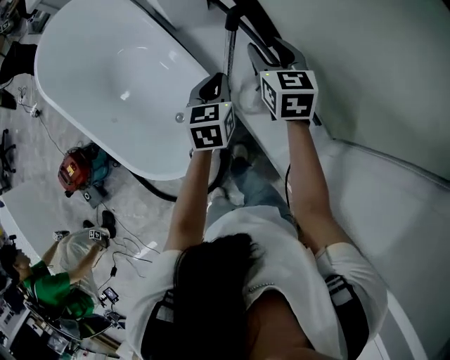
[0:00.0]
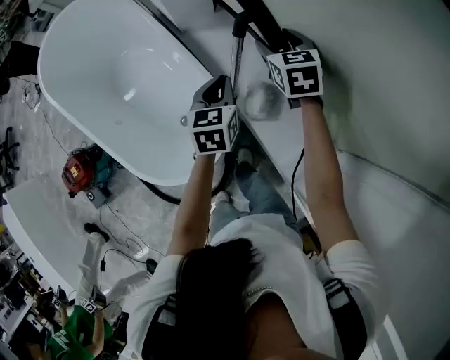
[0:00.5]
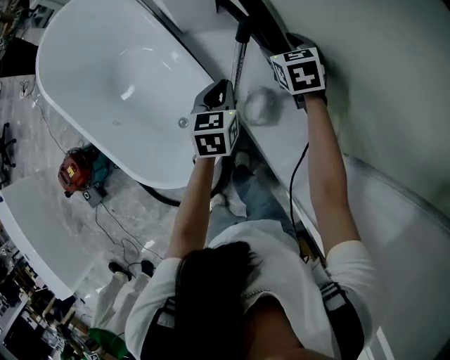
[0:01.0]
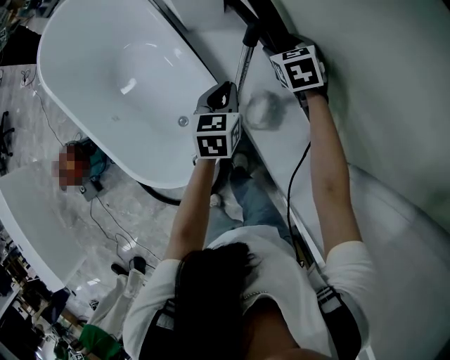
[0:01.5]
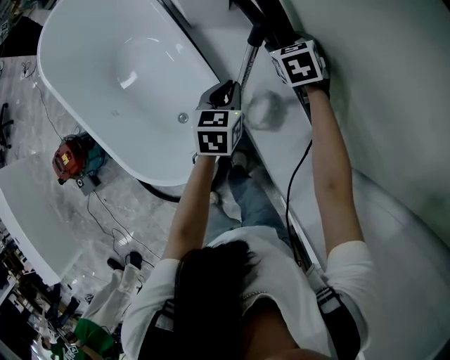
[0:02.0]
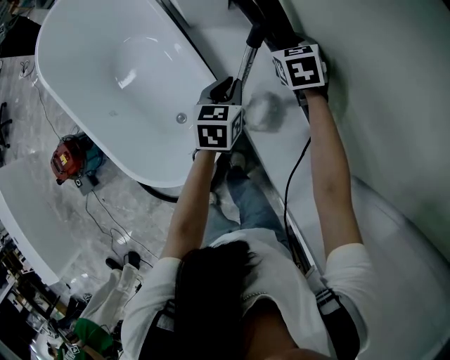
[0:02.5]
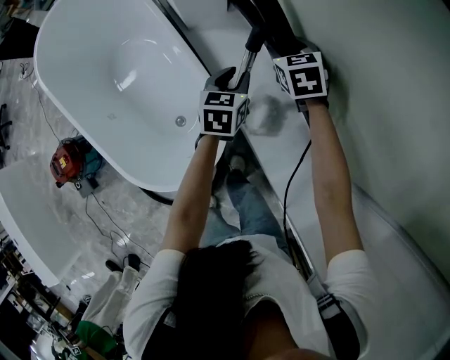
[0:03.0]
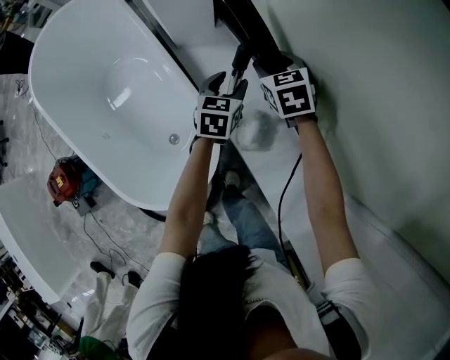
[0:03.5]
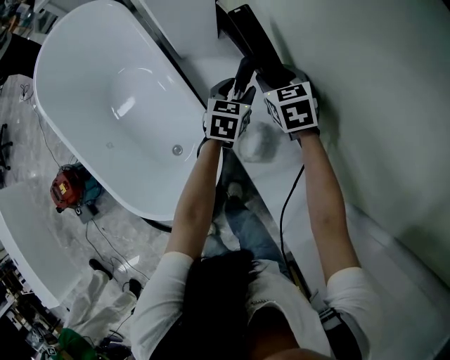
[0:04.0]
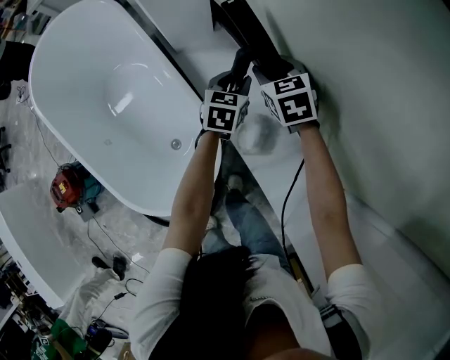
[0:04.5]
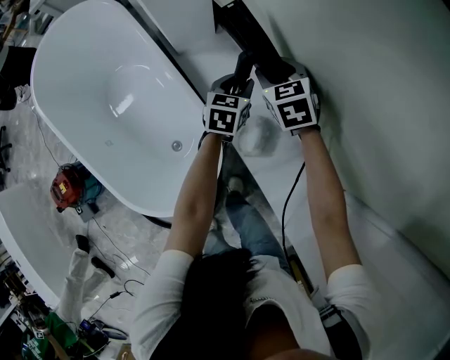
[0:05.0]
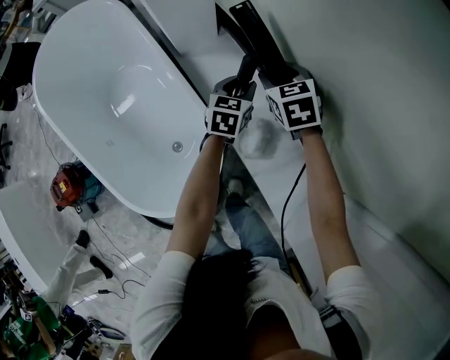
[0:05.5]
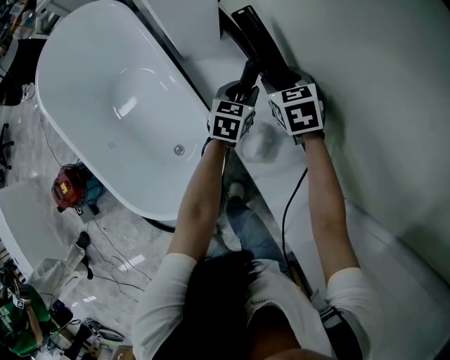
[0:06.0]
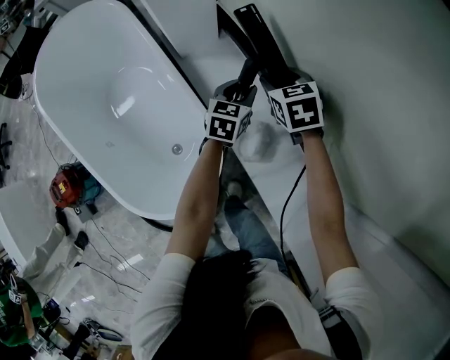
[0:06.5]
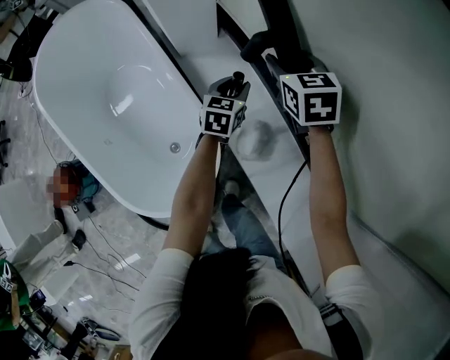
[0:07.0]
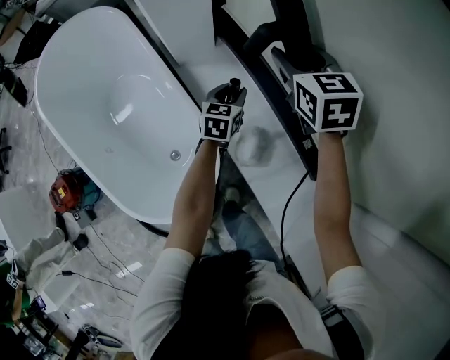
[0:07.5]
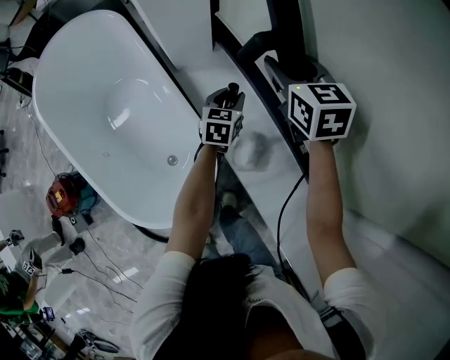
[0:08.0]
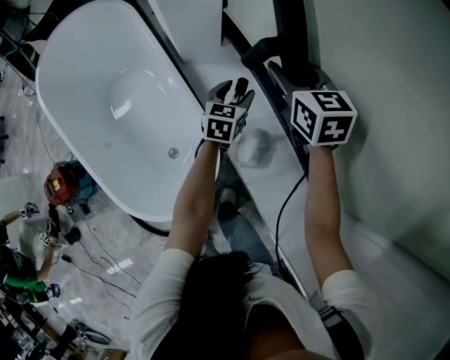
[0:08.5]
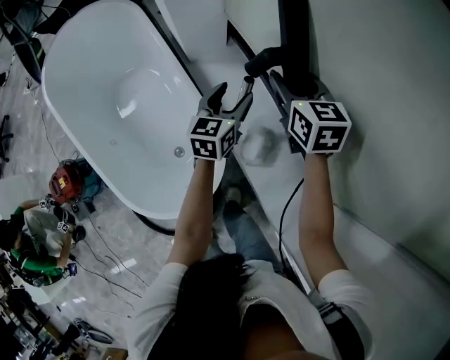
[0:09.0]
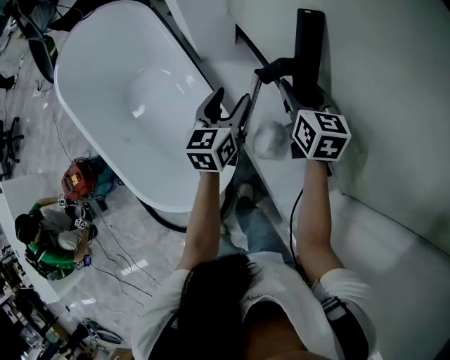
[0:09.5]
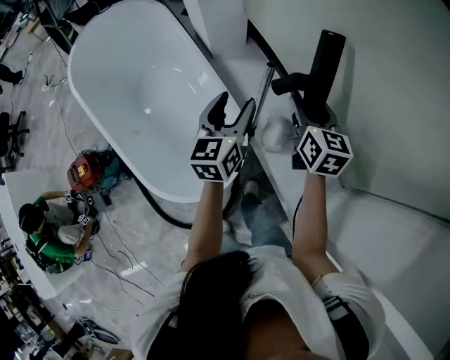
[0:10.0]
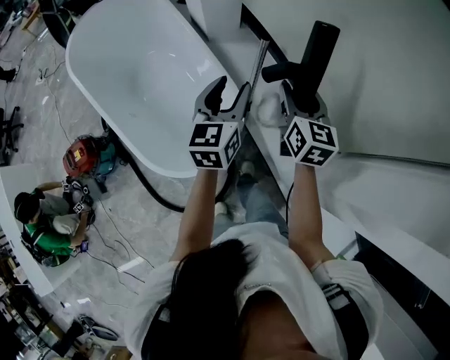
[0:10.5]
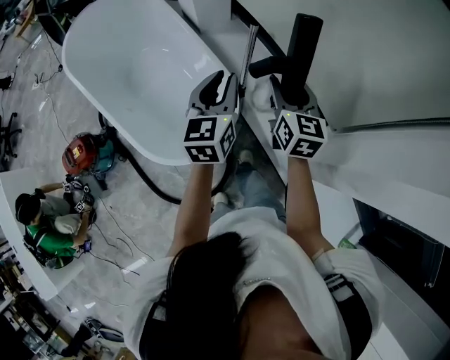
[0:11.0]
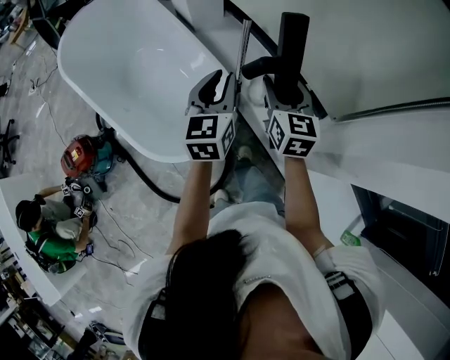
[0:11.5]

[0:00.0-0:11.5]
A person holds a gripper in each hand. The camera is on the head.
0:00.0 to 0:02.0: The right gripper moves downward and forward, about 15 cm, and turns by roughly 30 degrees; the left gripper moves some 5 cm.
0:02.0 to 0:04.0: The left gripper goes approximately 15 cm forward, to the right and downward, and opens.
0:04.0 to 0:06.0: Both grippers stay put.
0:06.0 to 0:07.5: The right gripper shifts some 15 cm upward.
0:07.5 to 0:09.5: The left gripper moves upward, backward and to the left, roughly 20 cm, rotates some 20 degrees, and opens its fingers; the right gripper shifts about 10 cm backward.
0:09.5 to 0:11.5: The right gripper goes roughly 25 cm backward, while the left gripper goes roughly 25 cm backward and upward, and closes its fingers.

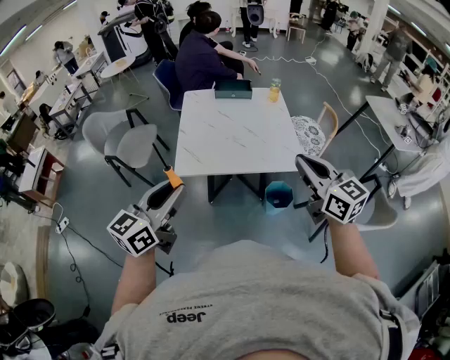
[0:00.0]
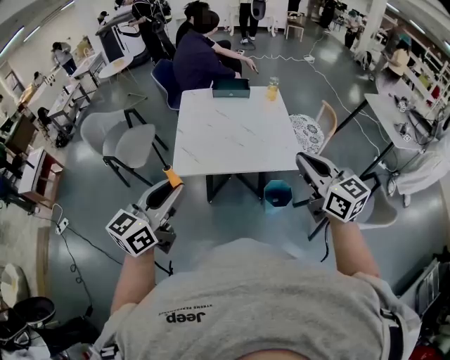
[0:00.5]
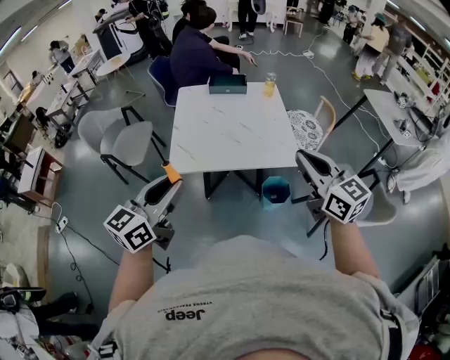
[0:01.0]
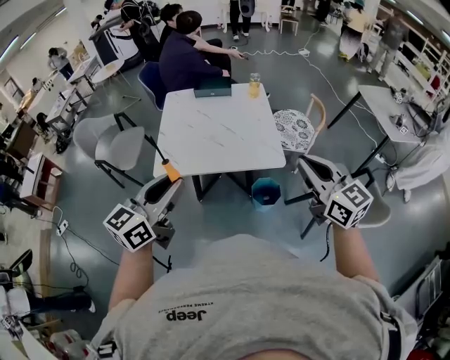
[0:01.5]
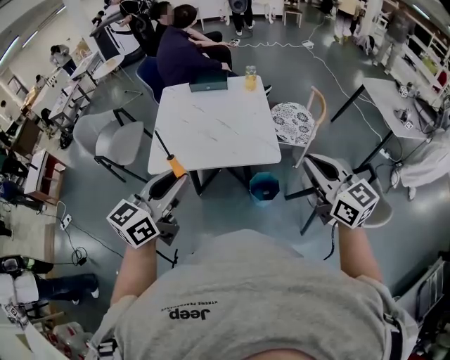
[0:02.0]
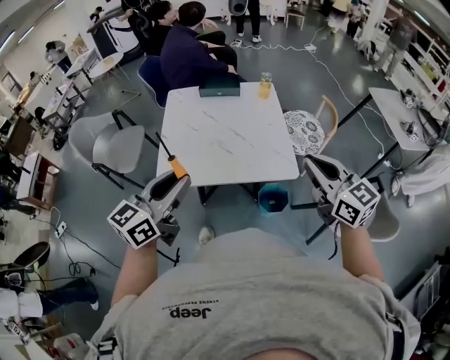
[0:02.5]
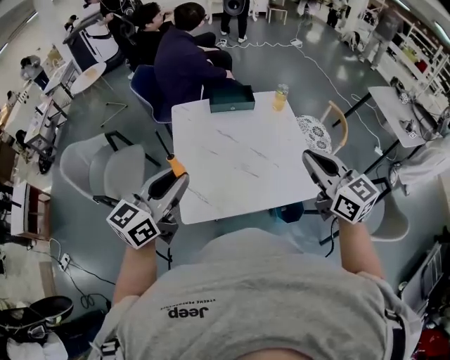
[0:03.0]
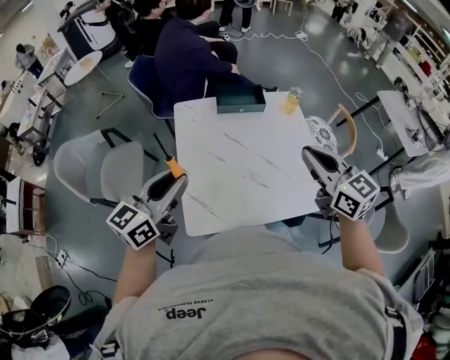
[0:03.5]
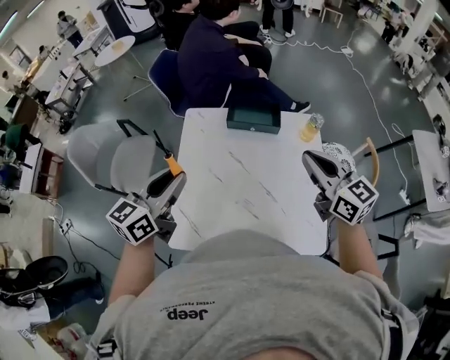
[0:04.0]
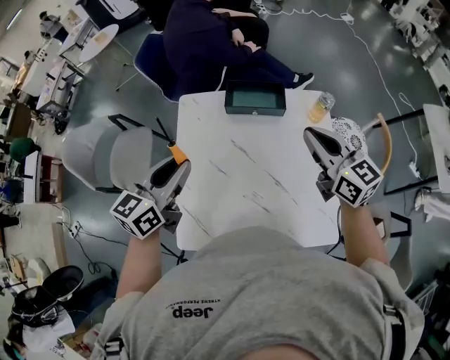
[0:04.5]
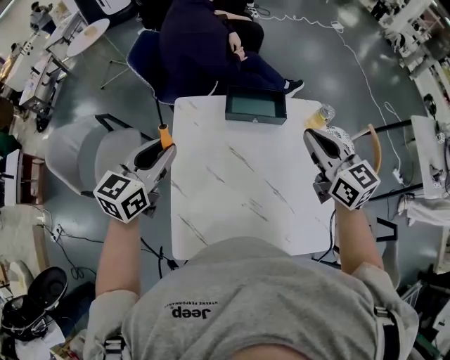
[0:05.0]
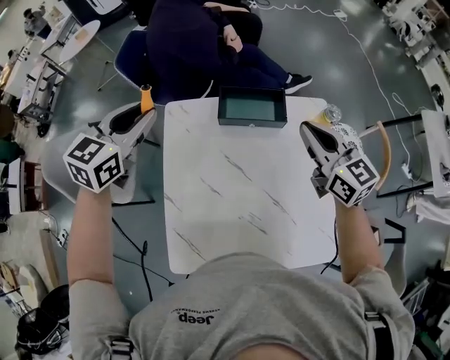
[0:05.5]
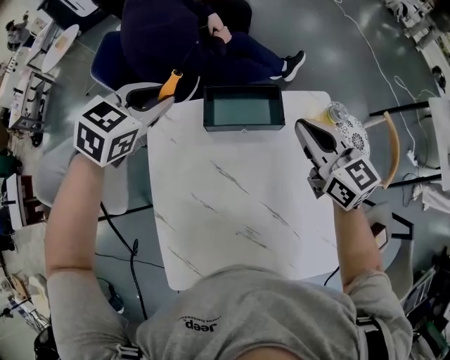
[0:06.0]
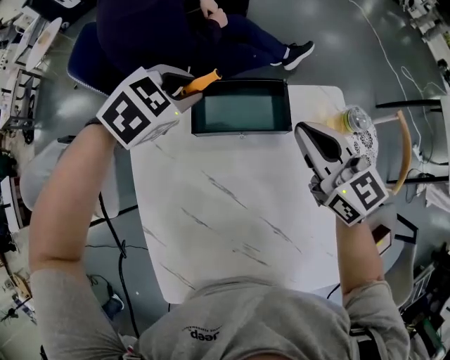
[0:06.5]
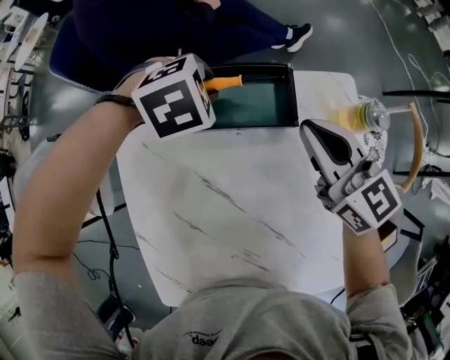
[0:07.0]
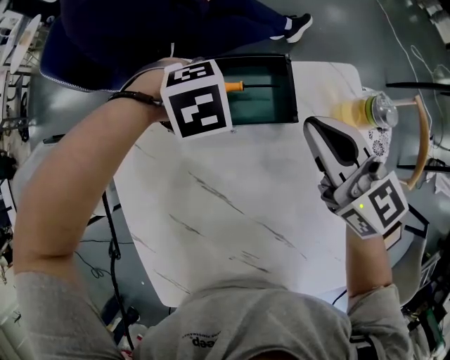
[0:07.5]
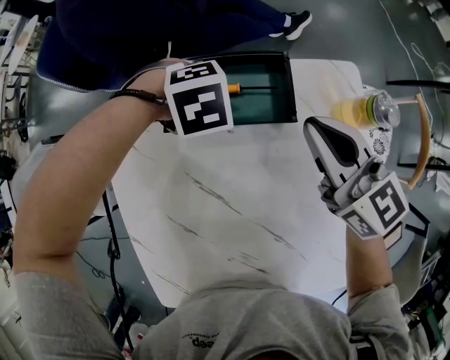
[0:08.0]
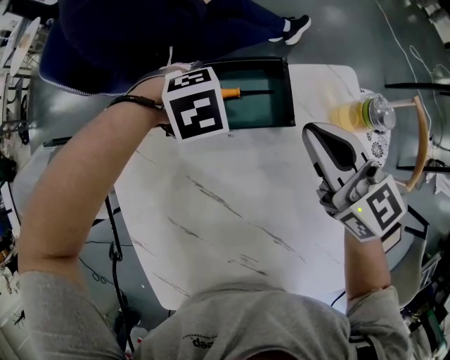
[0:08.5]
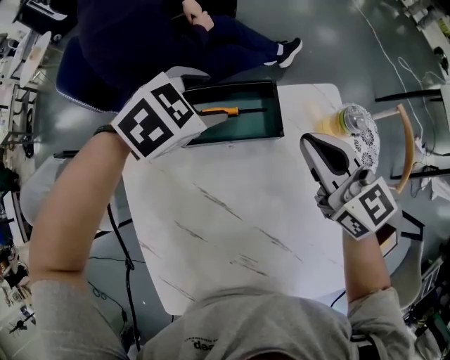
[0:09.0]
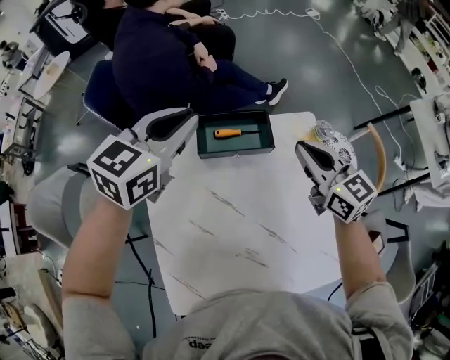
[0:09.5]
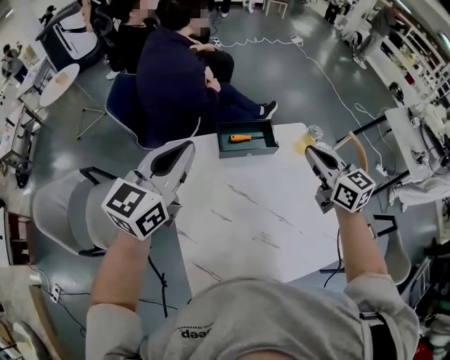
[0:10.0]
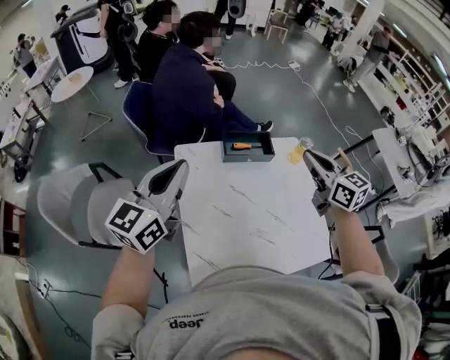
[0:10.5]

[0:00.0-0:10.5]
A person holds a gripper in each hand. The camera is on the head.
0:00.0 to 0:02.0: The grippers both shift to the right by approximately 20 cm.
0:02.0 to 0:04.0: The pair of grippers is taken forward and to the left, roughly 50 cm.
0:04.0 to 0:06.5: Both grippers move forward and downward, roughly 40 cm. The left gripper points its fingers approximately 50 degrees further downward.
0:06.5 to 0:08.5: The right gripper heads downward, covering some 5 cm; the left gripper goes about 15 cm downward, turns by about 30 degrees, and opens.
0:08.5 to 0:10.5: The right gripper shifts approximately 25 cm upward. The left gripper shifts some 40 cm upward, points its fingers some 80 degrees further upward, and closes up.

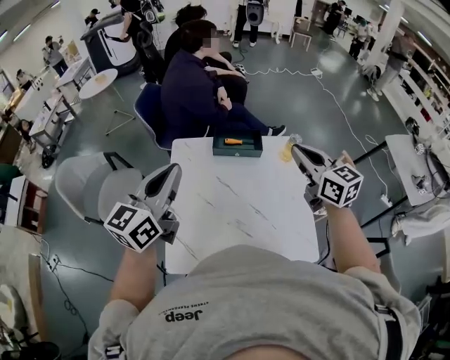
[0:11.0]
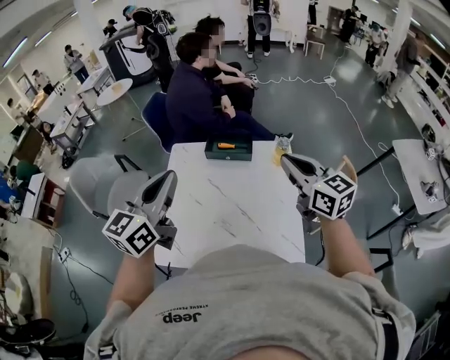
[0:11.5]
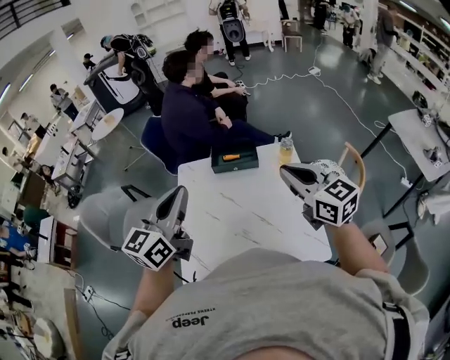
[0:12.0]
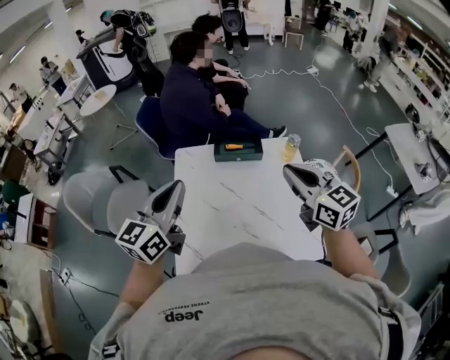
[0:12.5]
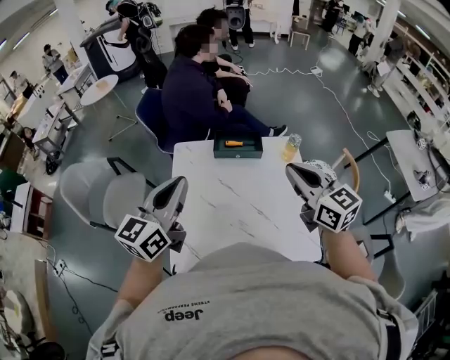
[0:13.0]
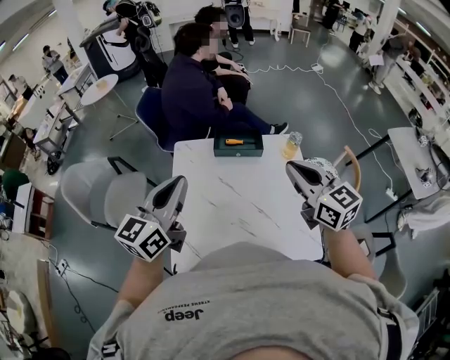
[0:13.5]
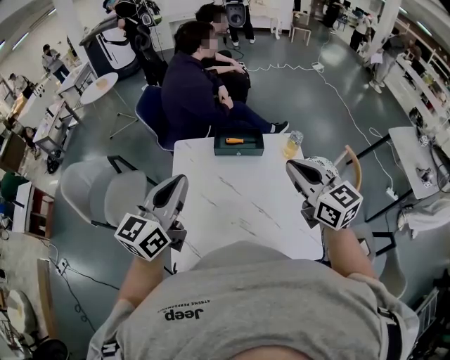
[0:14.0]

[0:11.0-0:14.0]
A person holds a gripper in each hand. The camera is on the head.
0:11.0 to 0:12.5: The left gripper reaches about 10 cm to the right, then returns. The right gripper is displaced backward by about 5 cm.
0:12.5 to 0:14.0: The grippers make only small movements.

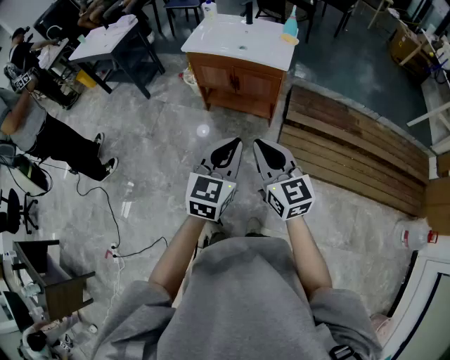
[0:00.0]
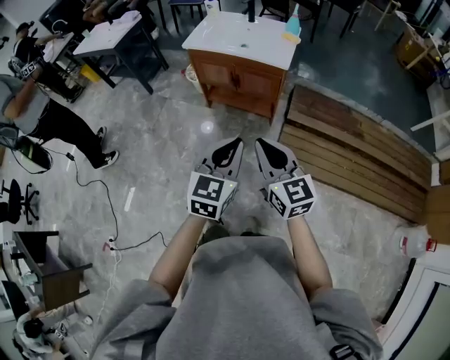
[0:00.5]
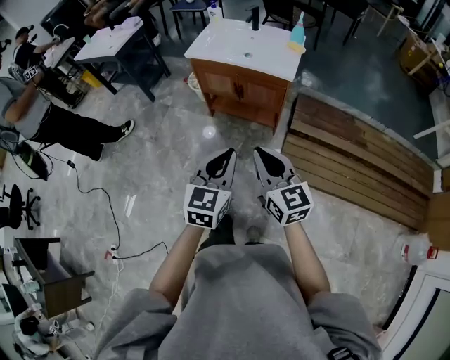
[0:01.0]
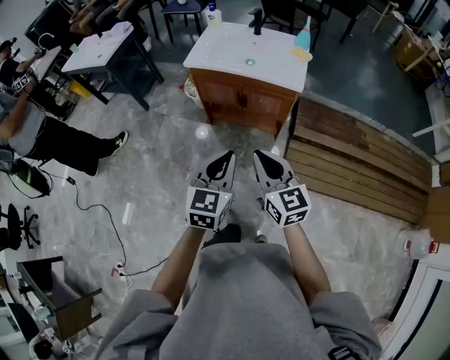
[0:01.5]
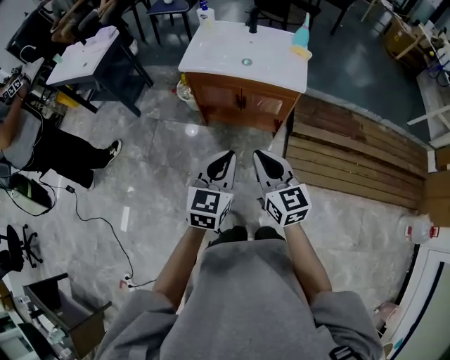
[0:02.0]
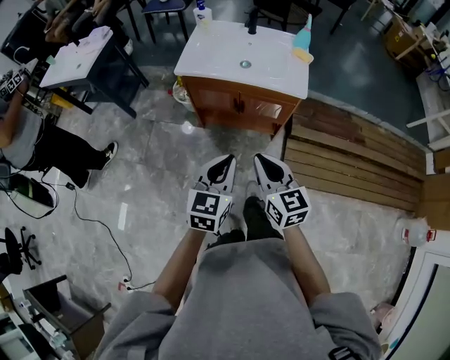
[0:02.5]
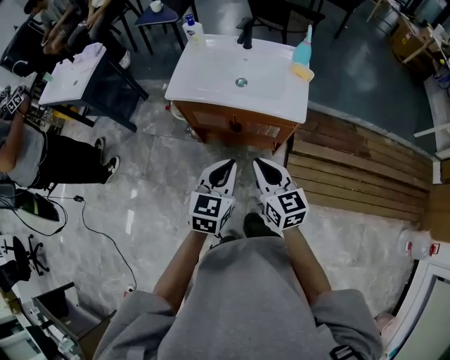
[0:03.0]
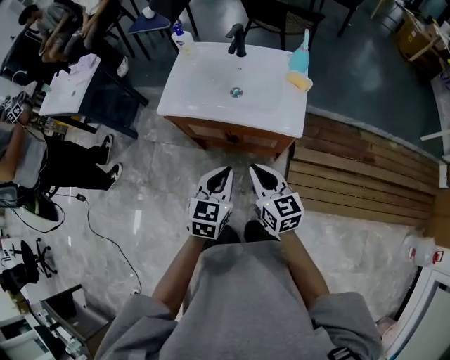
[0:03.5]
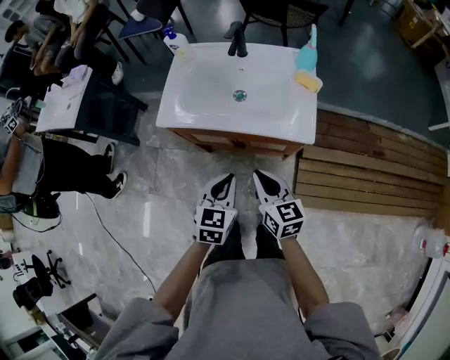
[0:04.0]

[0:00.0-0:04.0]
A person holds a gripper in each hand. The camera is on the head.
0:00.0 to 0:02.0: Both grippers move forward and to the left, some 20 cm.
0:02.0 to 0:04.0: The grippers both shift forward and downward by approximately 30 cm.
